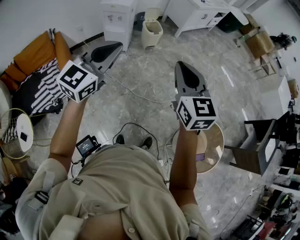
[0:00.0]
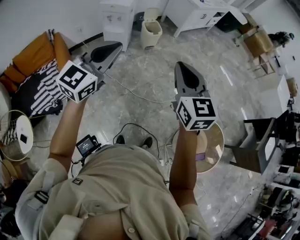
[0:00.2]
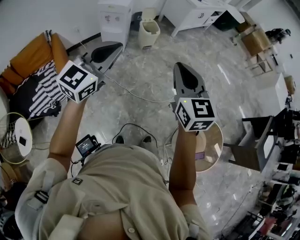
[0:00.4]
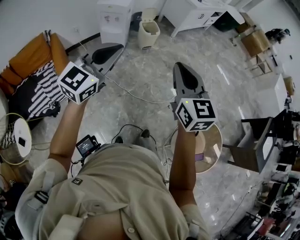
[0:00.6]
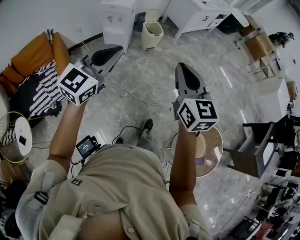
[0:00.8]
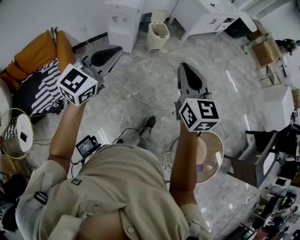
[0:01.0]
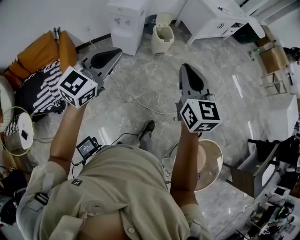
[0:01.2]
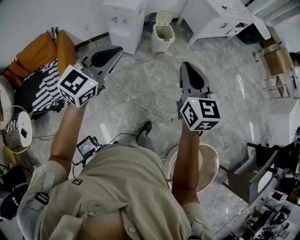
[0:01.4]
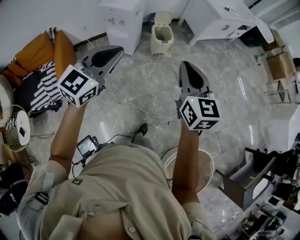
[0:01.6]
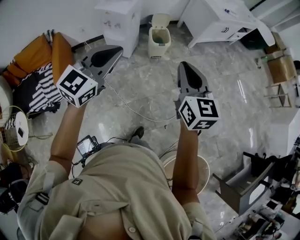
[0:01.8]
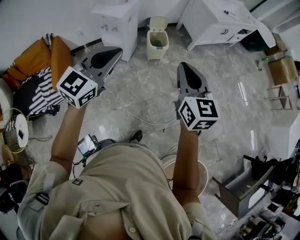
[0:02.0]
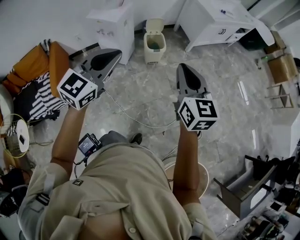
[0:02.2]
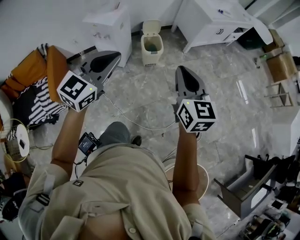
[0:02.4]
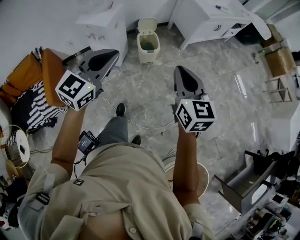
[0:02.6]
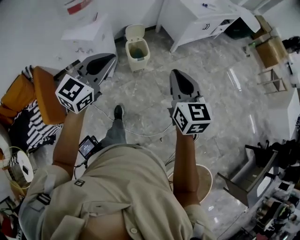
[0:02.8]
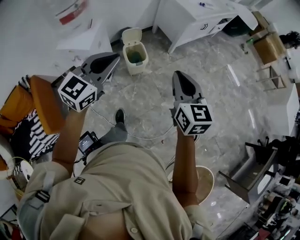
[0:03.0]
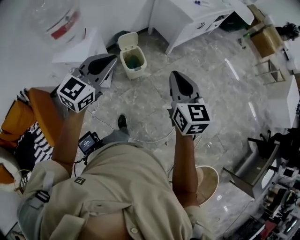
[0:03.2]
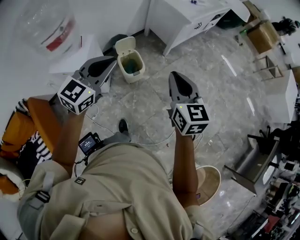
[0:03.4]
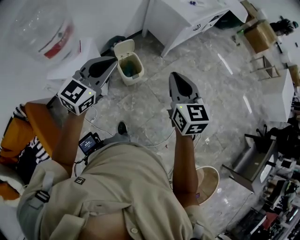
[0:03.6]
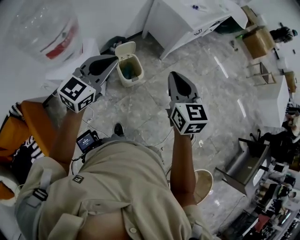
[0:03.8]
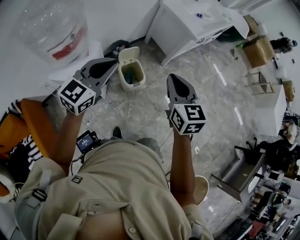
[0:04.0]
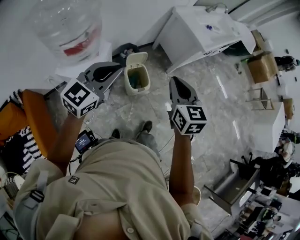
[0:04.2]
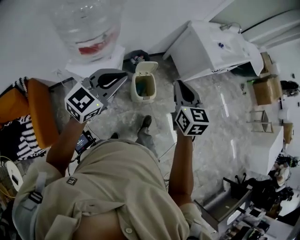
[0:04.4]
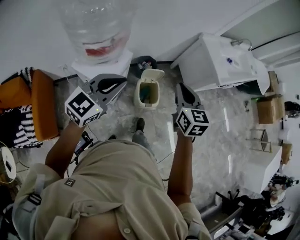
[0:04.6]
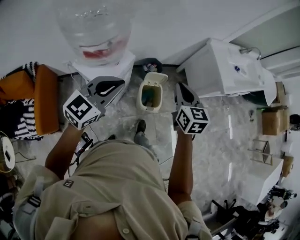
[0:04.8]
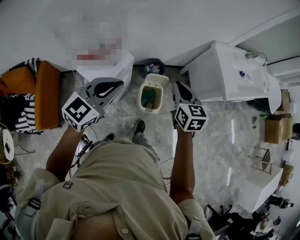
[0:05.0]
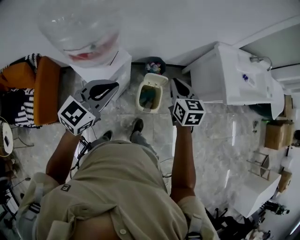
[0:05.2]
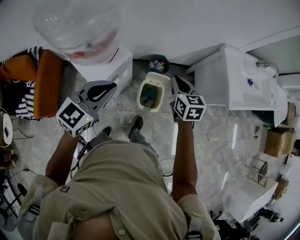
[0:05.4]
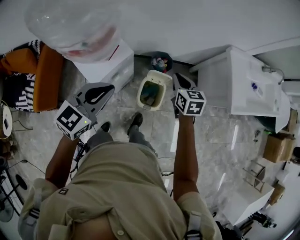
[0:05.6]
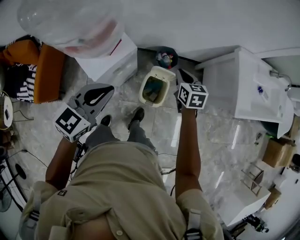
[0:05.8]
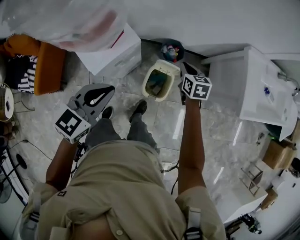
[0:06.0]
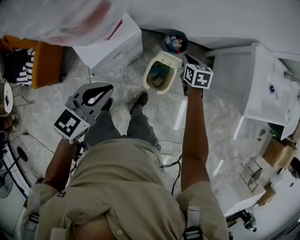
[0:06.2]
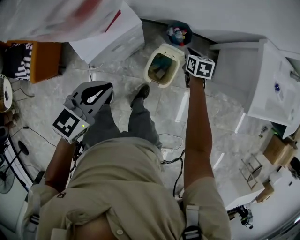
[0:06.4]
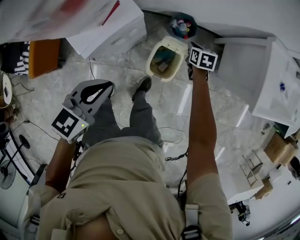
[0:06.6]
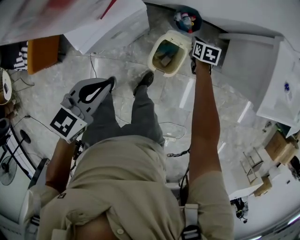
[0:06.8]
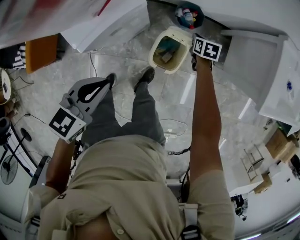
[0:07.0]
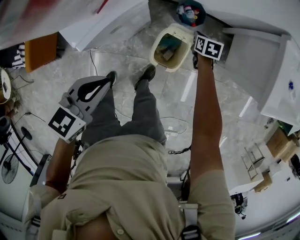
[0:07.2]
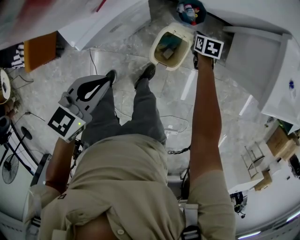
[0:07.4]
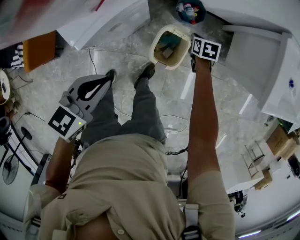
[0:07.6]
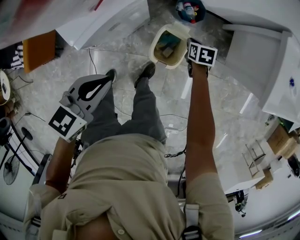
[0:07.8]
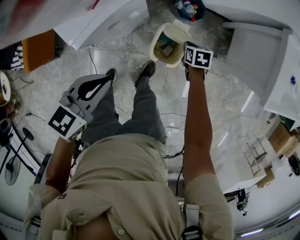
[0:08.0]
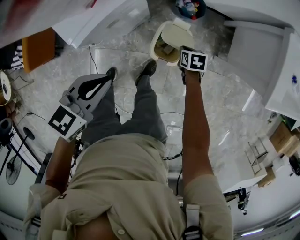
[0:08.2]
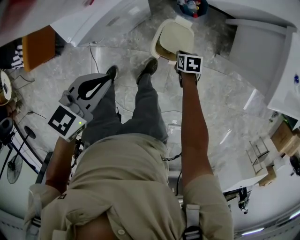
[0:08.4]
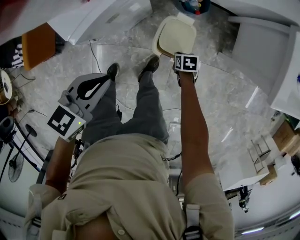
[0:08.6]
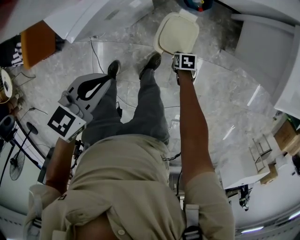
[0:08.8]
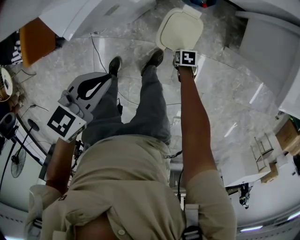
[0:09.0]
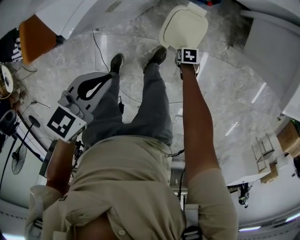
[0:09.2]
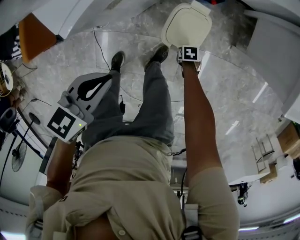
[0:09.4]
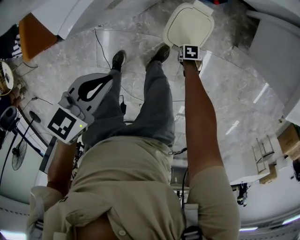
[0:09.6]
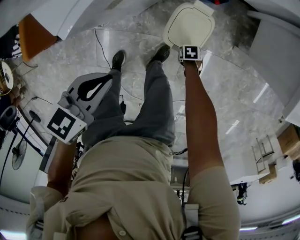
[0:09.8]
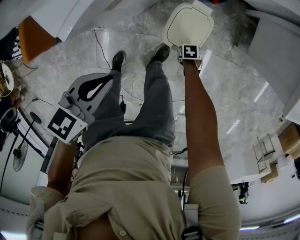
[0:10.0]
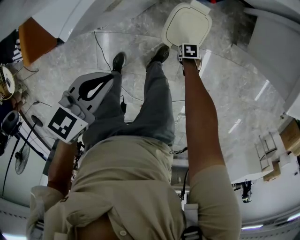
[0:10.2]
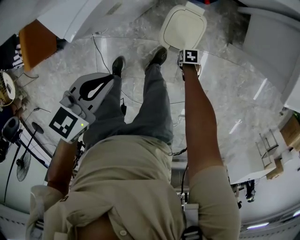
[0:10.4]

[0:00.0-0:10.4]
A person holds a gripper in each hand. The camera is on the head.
0:00.0 to 0:01.4: The two grippers go approximately 25 cm forward.
0:01.4 to 0:03.0: Both grippers move forward, approximately 35 cm.
0:03.0 to 0:04.4: The left gripper goes some 25 cm to the left and forward. Meanwhile the right gripper shifts about 35 cm forward and to the left.
0:04.4 to 0:06.0: The right gripper moves approximately 40 cm, and swivels some 40 degrees. Meanwhile the left gripper goes about 15 cm downward, and swivels roughly 40 degrees.
0:06.0 to 0:07.4: The left gripper is displaced downward by approximately 15 cm. The right gripper shifts roughly 25 cm downward.
0:07.4 to 0:09.0: The right gripper shifts by about 30 cm, and turns by approximately 20 degrees, while the left gripper moves downward, about 5 cm.
0:09.0 to 0:10.4: The right gripper changes place by roughly 5 cm.

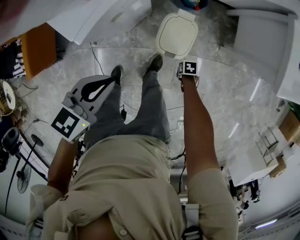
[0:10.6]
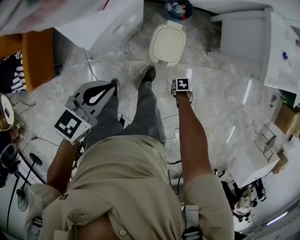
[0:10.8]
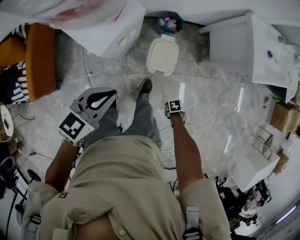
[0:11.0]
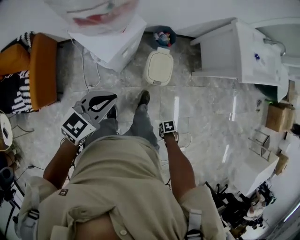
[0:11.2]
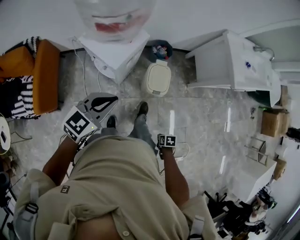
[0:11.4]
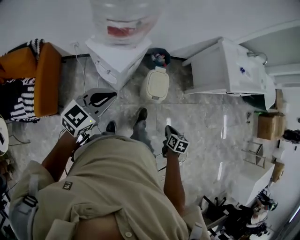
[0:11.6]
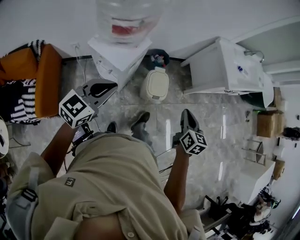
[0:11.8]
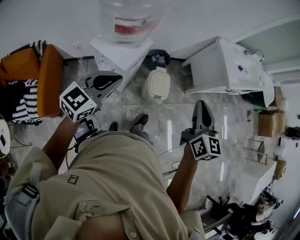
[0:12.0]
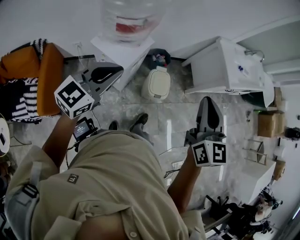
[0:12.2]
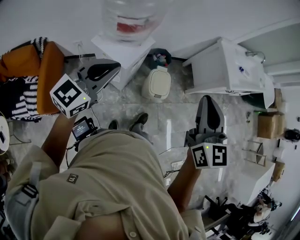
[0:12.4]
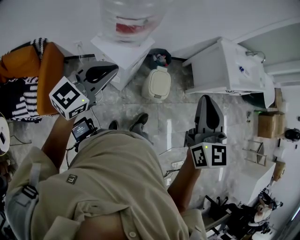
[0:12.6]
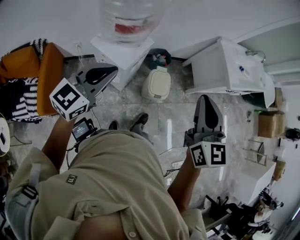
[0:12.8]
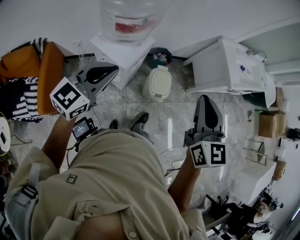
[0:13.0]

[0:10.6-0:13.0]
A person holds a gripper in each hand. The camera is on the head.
0:10.6 to 0:11.8: The right gripper is displaced upward by about 60 cm, and points its fingers about 50 degrees further upward. Meanwhile the left gripper heads upward, covering some 25 cm, and swivels about 40 degrees.
0:11.8 to 0:13.0: The left gripper is displaced upward by about 10 cm; the right gripper travels upward and to the left by approximately 25 cm, and changes its angle by some 30 degrees.

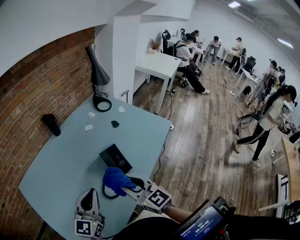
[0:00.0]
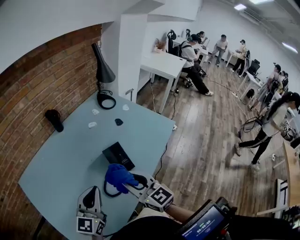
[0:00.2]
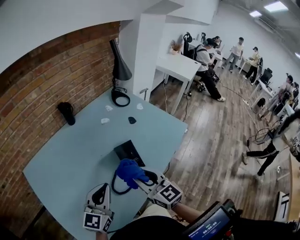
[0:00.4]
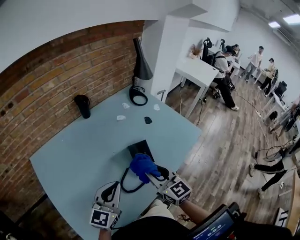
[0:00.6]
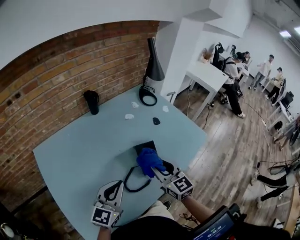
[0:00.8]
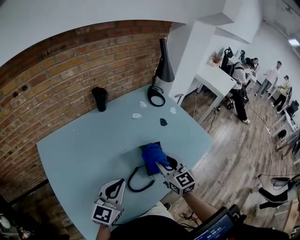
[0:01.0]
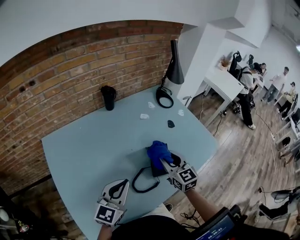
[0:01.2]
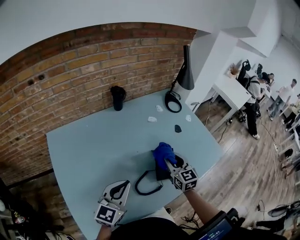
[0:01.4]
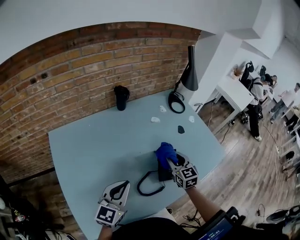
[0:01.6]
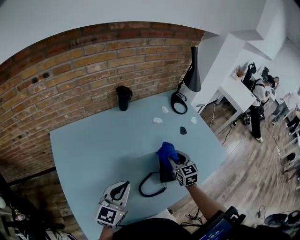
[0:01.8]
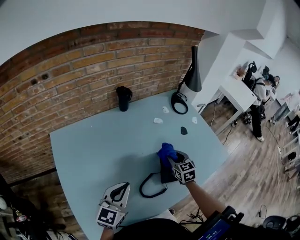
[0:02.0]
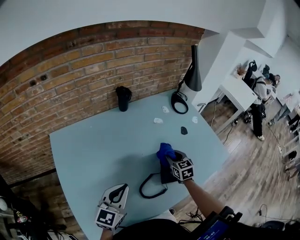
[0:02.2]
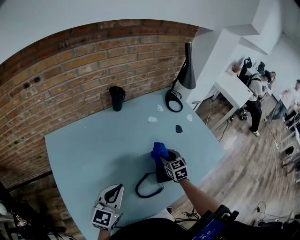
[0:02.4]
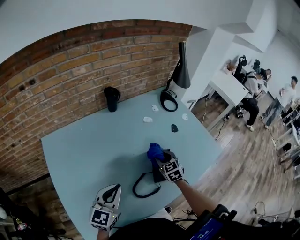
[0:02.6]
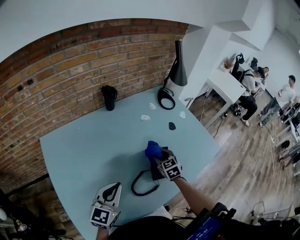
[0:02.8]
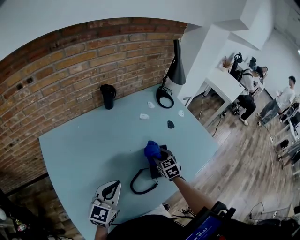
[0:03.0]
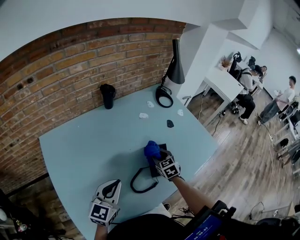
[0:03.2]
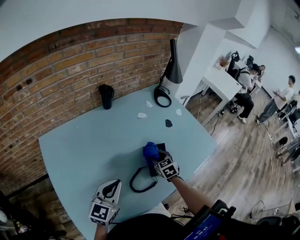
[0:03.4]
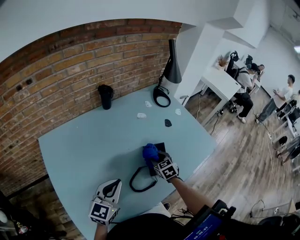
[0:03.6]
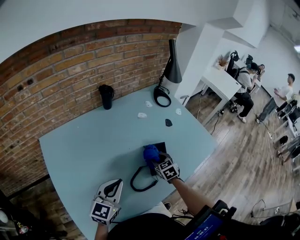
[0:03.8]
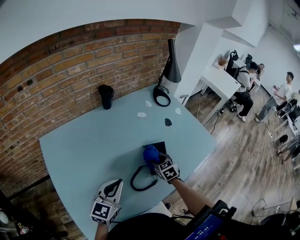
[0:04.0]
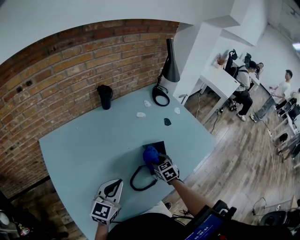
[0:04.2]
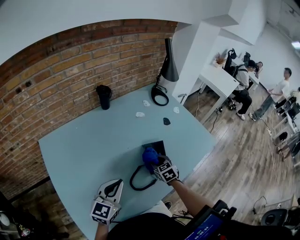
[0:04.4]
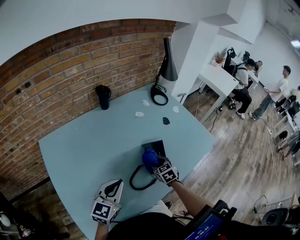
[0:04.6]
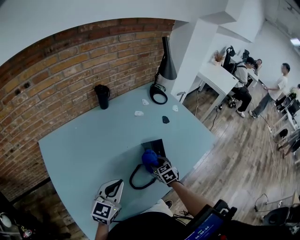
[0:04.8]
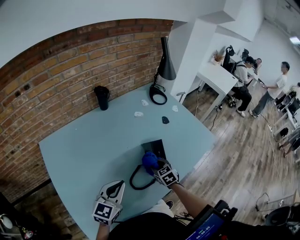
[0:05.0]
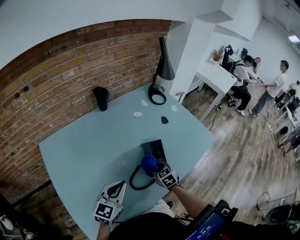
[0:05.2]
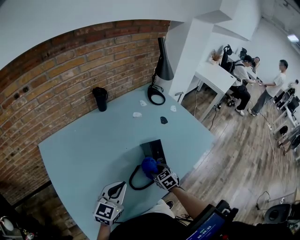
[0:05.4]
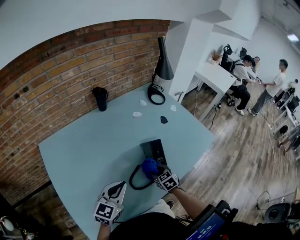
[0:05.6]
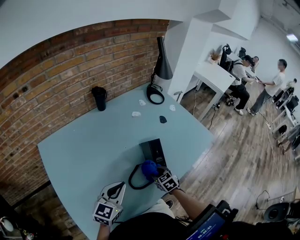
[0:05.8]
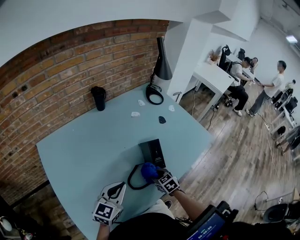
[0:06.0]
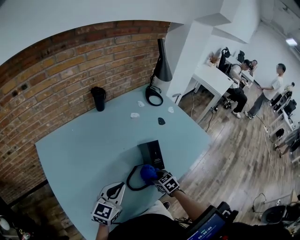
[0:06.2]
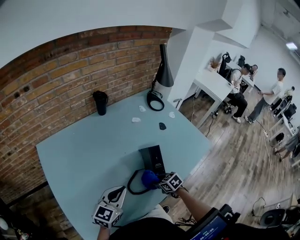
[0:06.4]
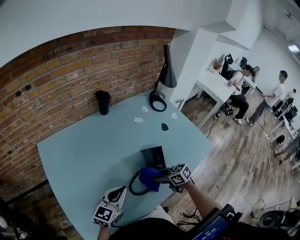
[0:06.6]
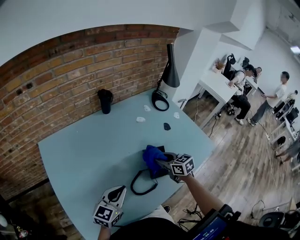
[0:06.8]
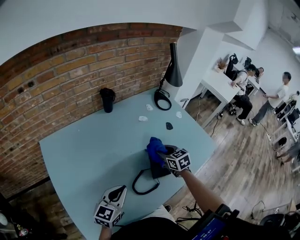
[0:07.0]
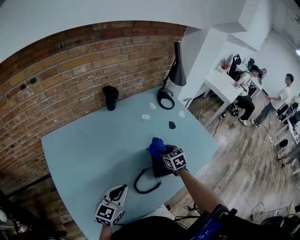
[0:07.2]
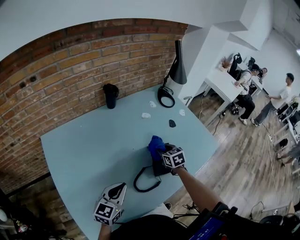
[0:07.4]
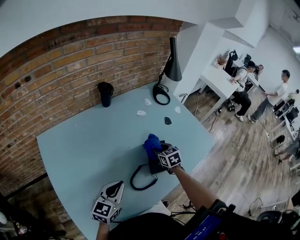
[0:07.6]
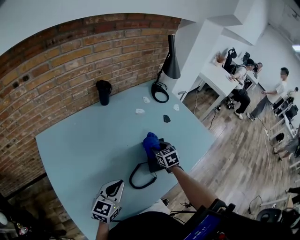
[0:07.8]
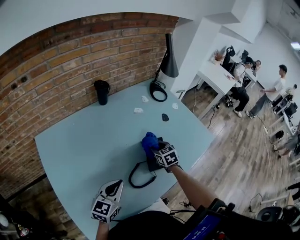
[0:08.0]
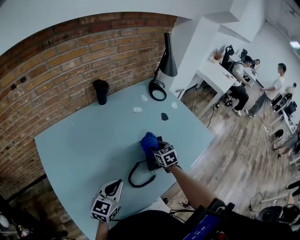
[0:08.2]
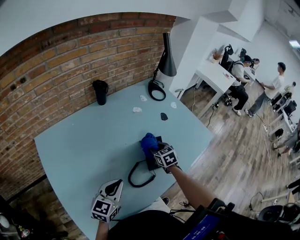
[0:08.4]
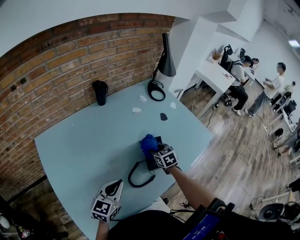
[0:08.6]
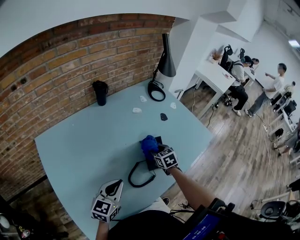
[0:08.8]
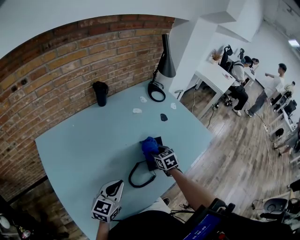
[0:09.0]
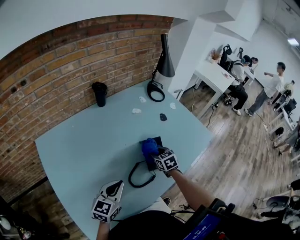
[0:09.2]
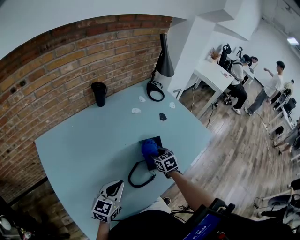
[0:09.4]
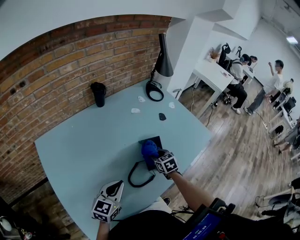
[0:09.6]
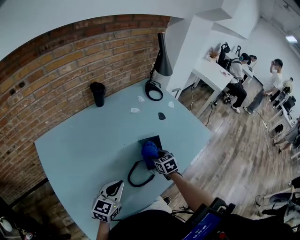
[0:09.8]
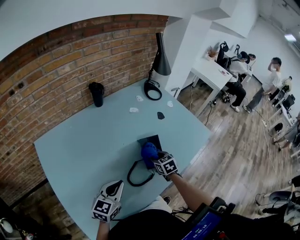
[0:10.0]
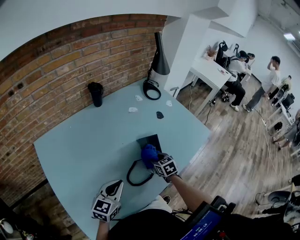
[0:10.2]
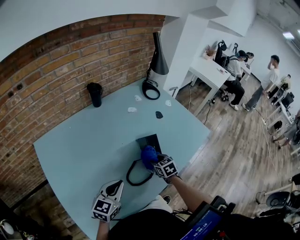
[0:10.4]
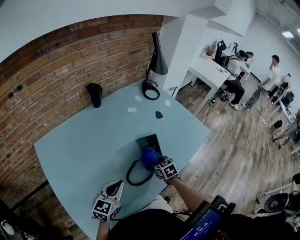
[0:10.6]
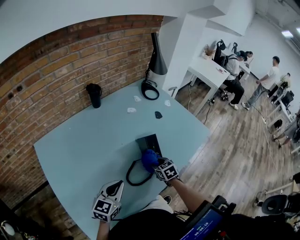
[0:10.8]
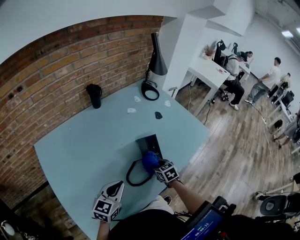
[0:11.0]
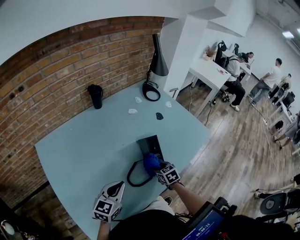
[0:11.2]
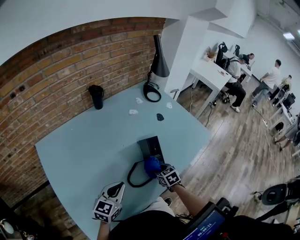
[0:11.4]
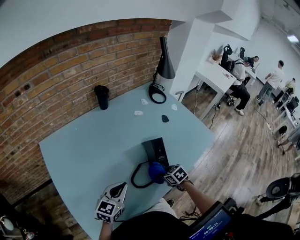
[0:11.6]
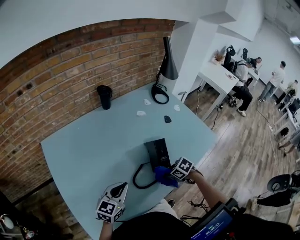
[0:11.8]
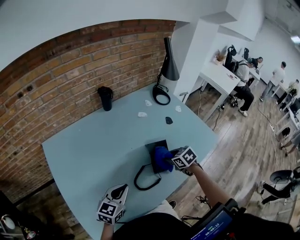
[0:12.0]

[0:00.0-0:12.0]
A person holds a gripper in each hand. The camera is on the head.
0:00.0 to 0:01.6: The right gripper goes about 20 cm forward and downward. Meanwhile the left gripper heads to the left, covering roughly 5 cm.
0:01.6 to 0:03.0: The right gripper goes approximately 10 cm downward.
0:03.0 to 0:04.4: The right gripper travels backward by approximately 5 cm.
0:04.4 to 0:06.0: The right gripper shifts roughly 10 cm backward.
0:06.0 to 0:07.6: The right gripper goes about 15 cm forward and upward.
0:07.6 to 0:09.0: There are only small adjustments of the grippers.
0:09.0 to 0:10.4: The right gripper is displaced backward by some 5 cm.
0:10.4 to 0:12.0: The right gripper shifts roughly 5 cm upward.
